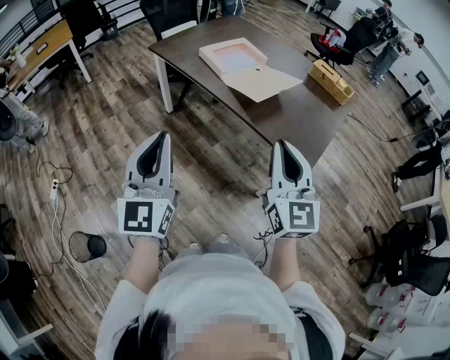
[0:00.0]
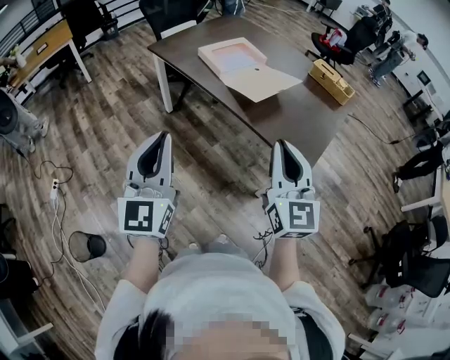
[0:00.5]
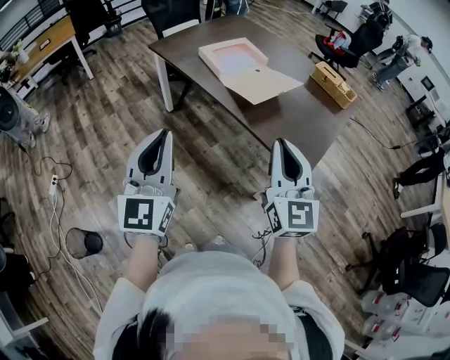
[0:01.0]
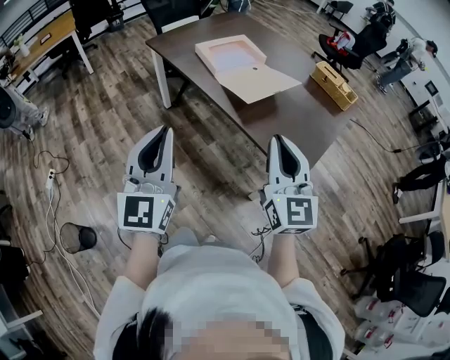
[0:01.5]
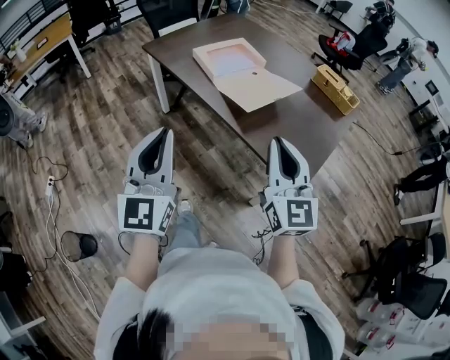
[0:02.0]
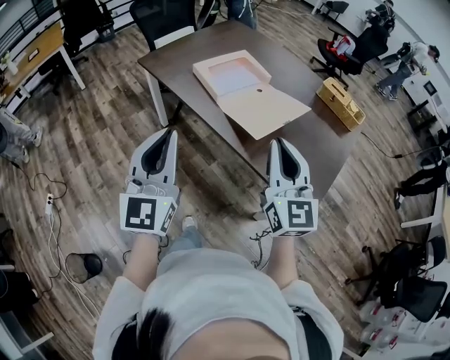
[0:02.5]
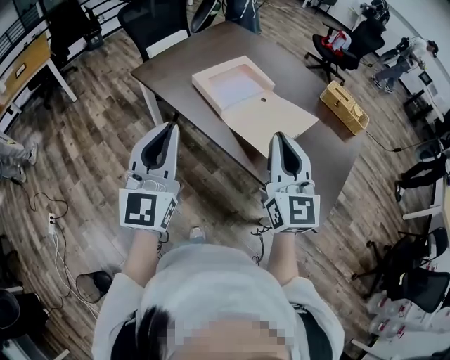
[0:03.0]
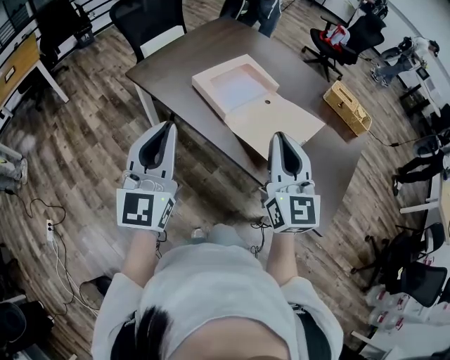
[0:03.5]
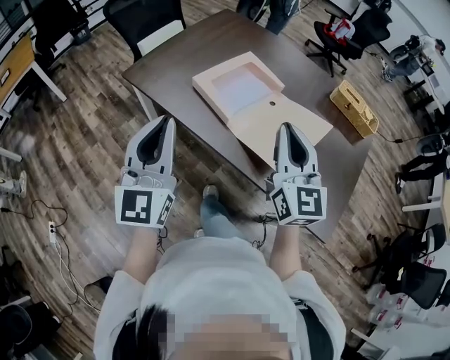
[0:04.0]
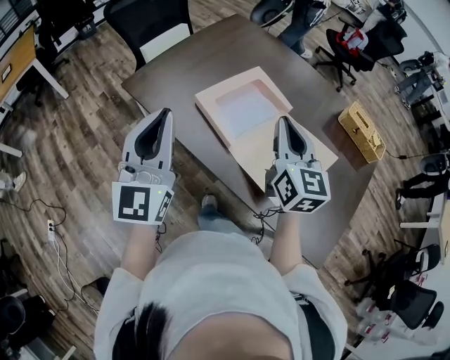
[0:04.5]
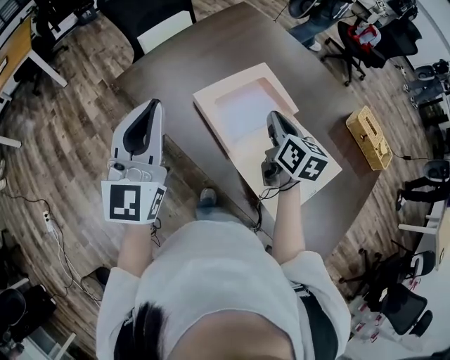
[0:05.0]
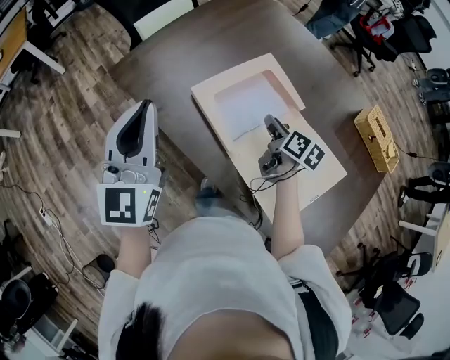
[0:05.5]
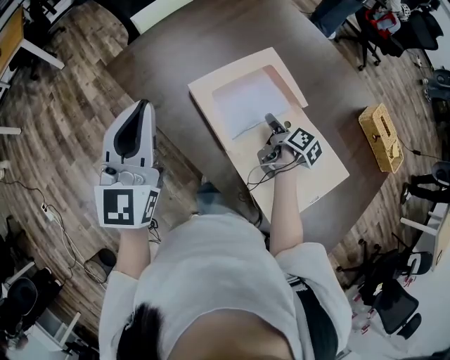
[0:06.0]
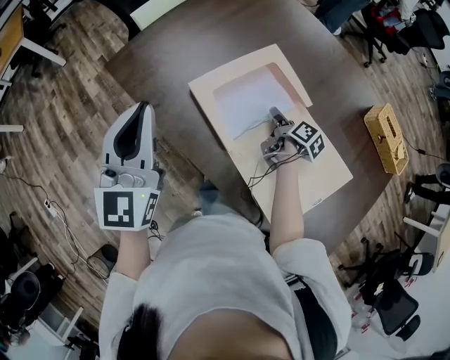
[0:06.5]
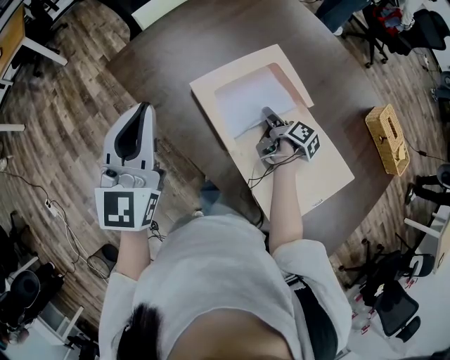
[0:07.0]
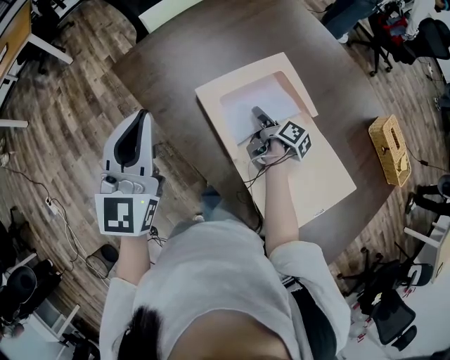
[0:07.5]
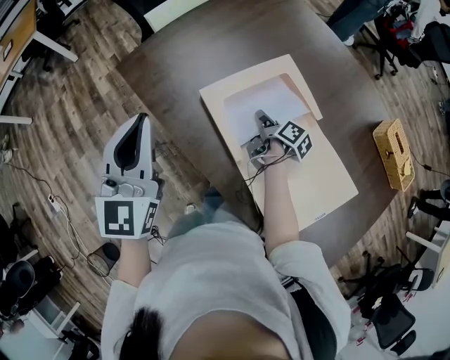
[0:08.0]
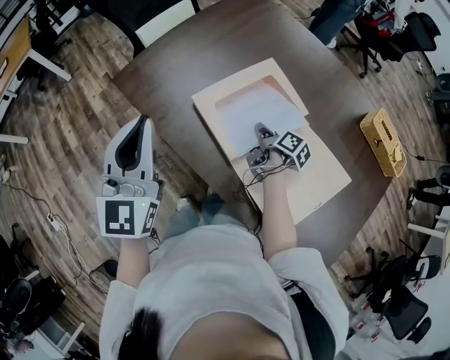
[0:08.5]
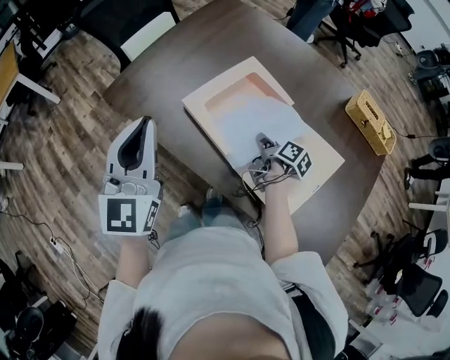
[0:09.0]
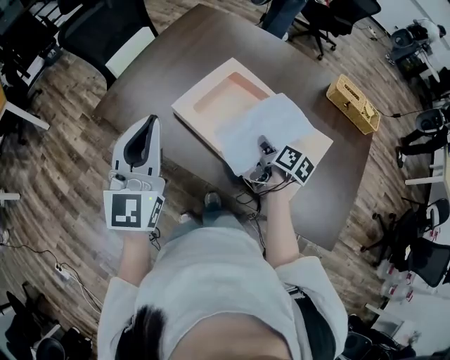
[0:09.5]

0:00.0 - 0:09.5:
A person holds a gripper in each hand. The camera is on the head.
0:00.0 - 0:02.0: Both grippers move forward and to the right, some 10 cm.
0:02.0 - 0:04.0: The grippers both shift forward by some 35 cm.
0:04.0 - 0:05.5: The left gripper heads forward, covering roughly 20 cm. Meanwhile the right gripper moves forward and downward, some 35 cm, and angles its fingers downward, by roughly 40 degrees.
0:05.5 - 0:07.5: The right gripper heads downward and forward, covering roughly 10 cm, and swivels some 30 degrees.
0:07.5 - 0:09.5: The left gripper moves backward, some 5 cm, while the right gripper moves backward and upward, approximately 20 cm, turns by some 20 degrees, and closes up.

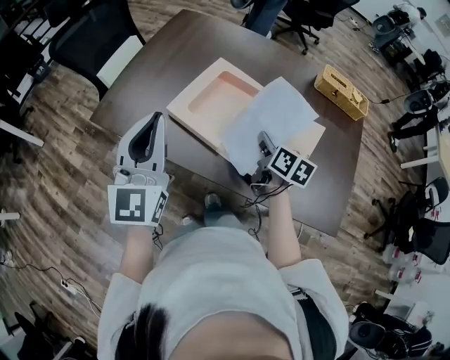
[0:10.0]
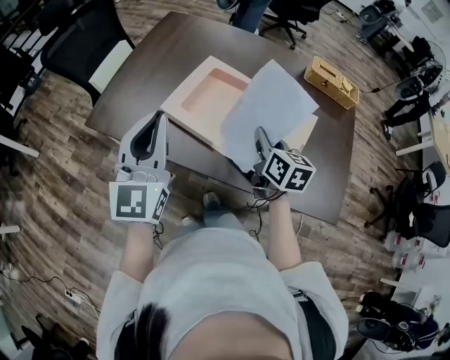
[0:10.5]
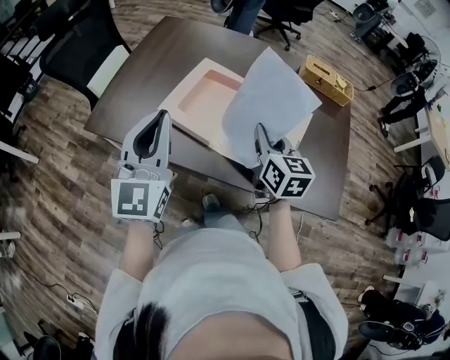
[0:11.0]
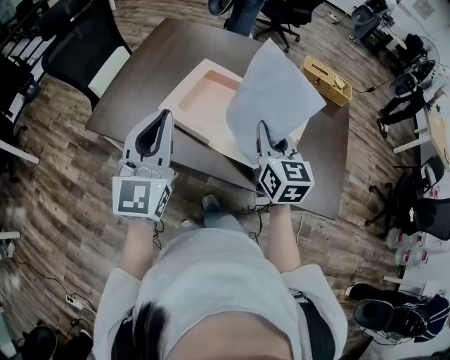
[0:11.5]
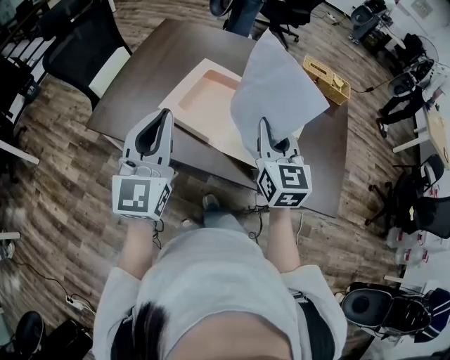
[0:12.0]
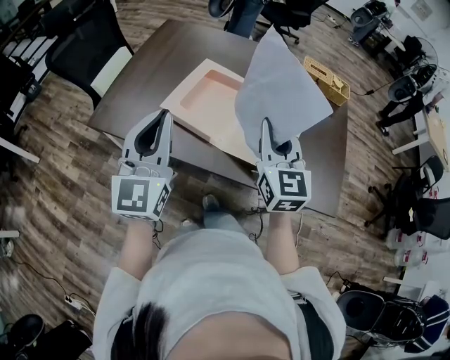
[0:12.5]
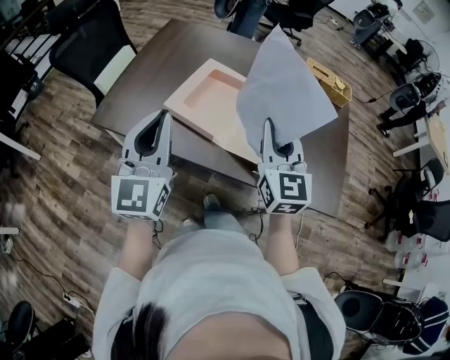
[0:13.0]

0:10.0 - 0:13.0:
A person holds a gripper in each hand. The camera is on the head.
0:10.0 - 0:11.5: The right gripper shifts some 15 cm upward and backward, and turns by some 40 degrees.
0:11.5 - 0:13.0: The right gripper travels upward by approximately 5 cm.

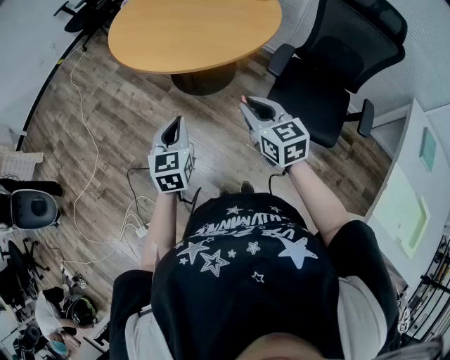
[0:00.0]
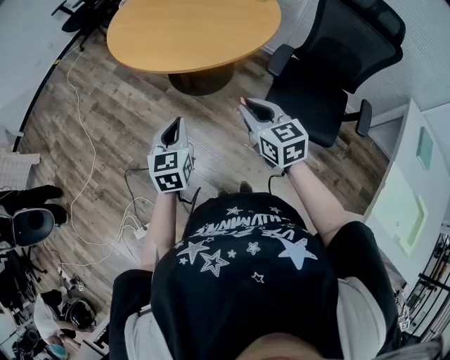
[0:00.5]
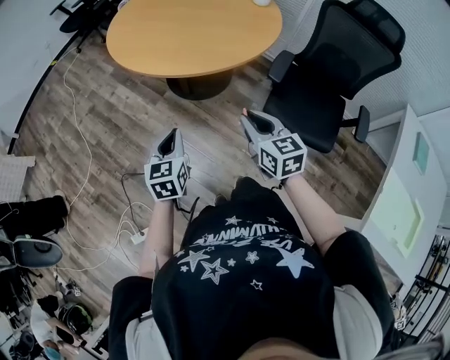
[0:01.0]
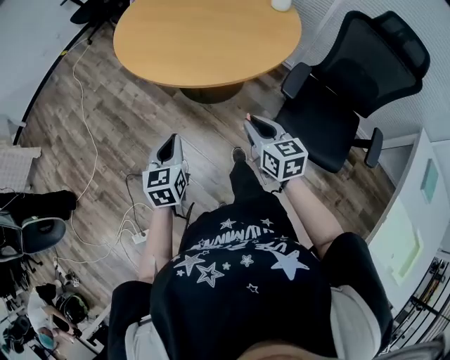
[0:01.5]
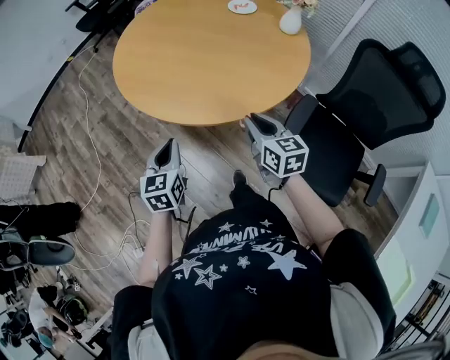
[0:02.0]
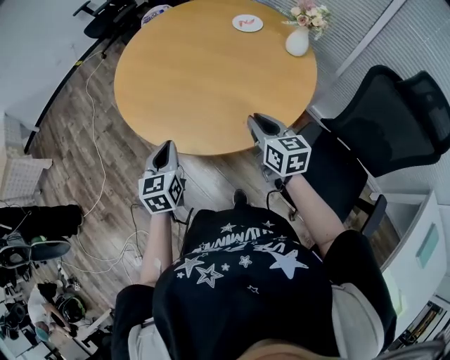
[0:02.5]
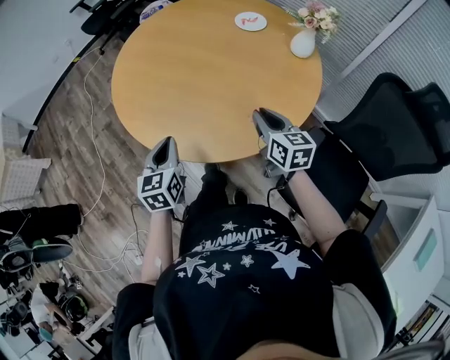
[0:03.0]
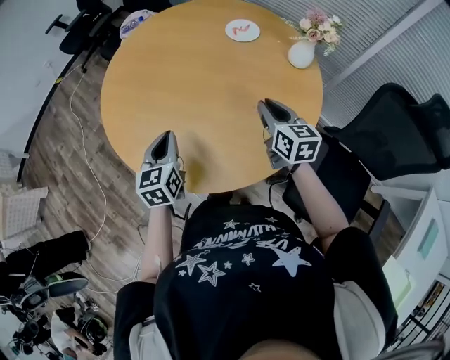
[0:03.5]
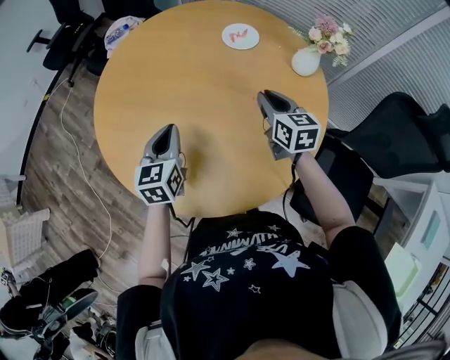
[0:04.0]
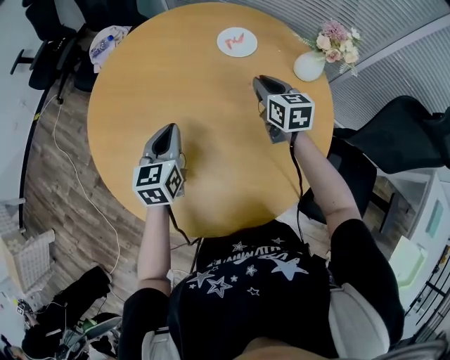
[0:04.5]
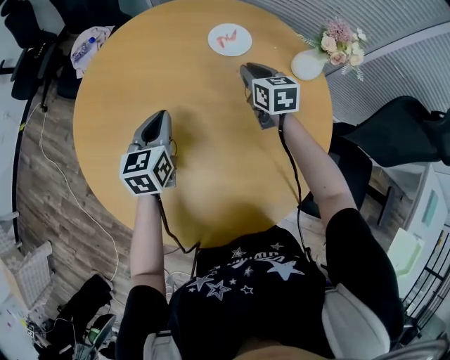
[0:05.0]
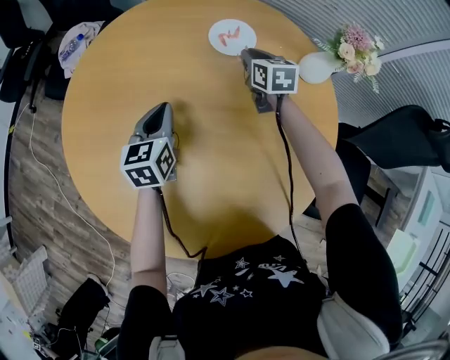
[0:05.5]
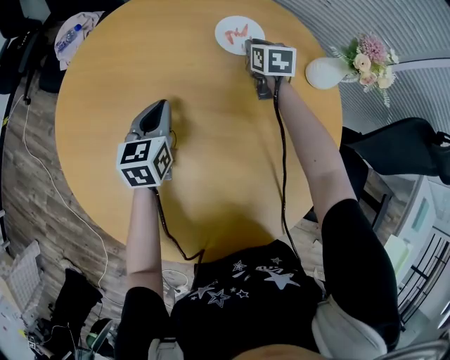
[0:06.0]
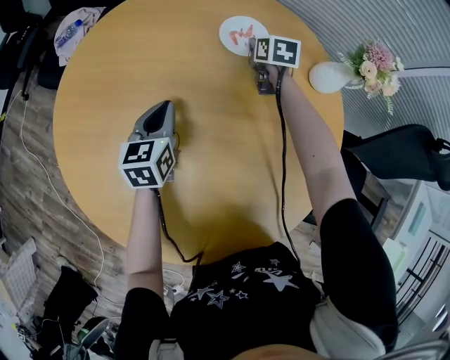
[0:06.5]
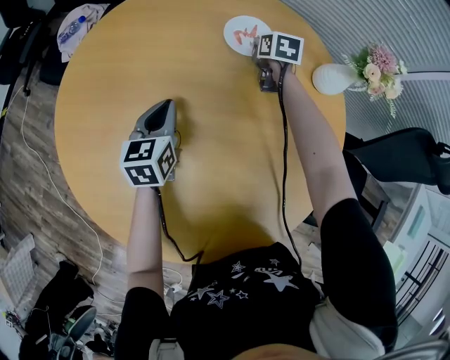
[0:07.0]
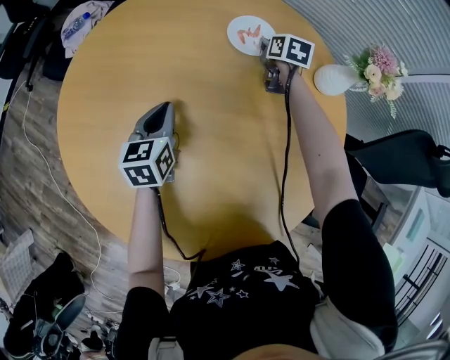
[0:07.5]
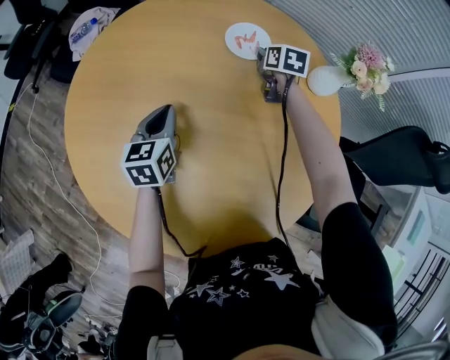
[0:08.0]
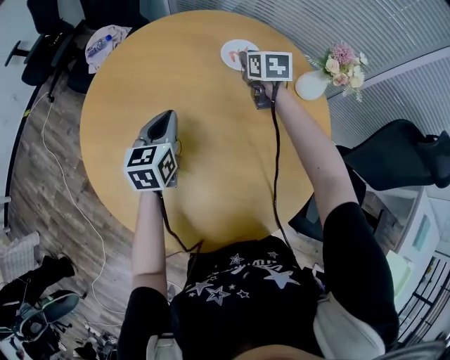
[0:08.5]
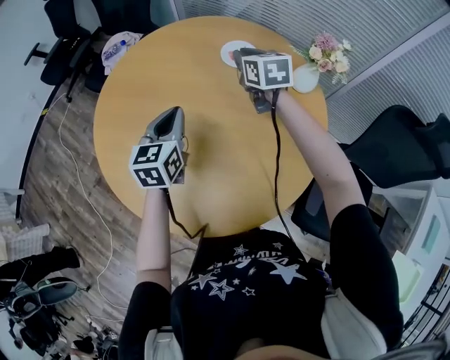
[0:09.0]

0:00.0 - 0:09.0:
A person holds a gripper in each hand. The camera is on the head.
0:00.0 - 0:02.0: Both grippers move forward, approximately 25 cm.
0:02.0 - 0:04.5: The pair of grippers is taken forward, approximately 50 cm.
0:04.5 - 0:07.0: The left gripper moves forward and downward, roughly 15 cm. The right gripper travels forward and downward by about 25 cm, and swivels approximately 30 degrees.
0:07.0 - 0:09.0: The grippers both shift upward and backward by approximately 25 cm. The right gripper changes its angle by roughly 30 degrees.

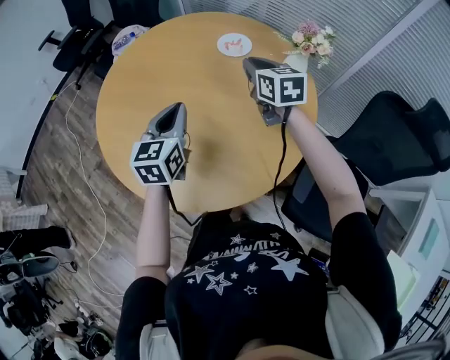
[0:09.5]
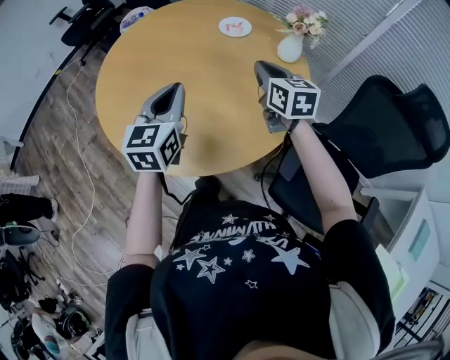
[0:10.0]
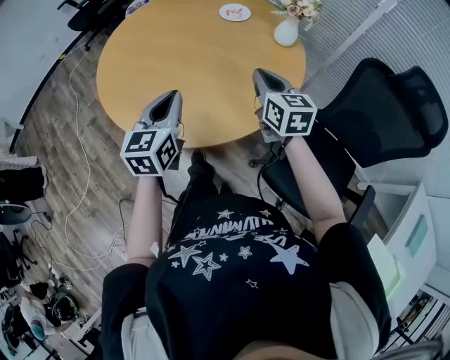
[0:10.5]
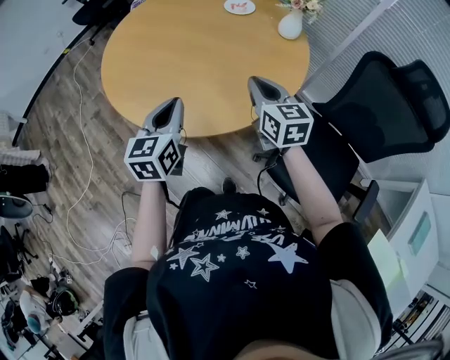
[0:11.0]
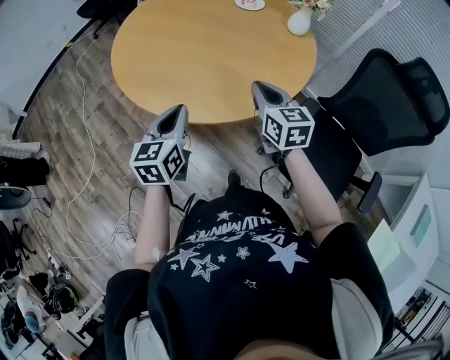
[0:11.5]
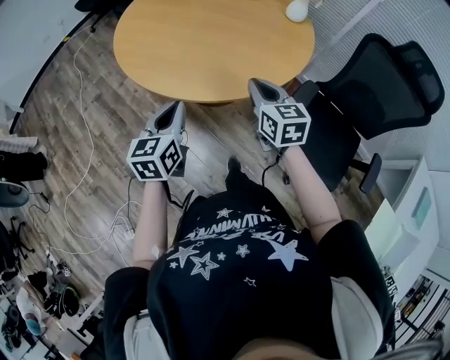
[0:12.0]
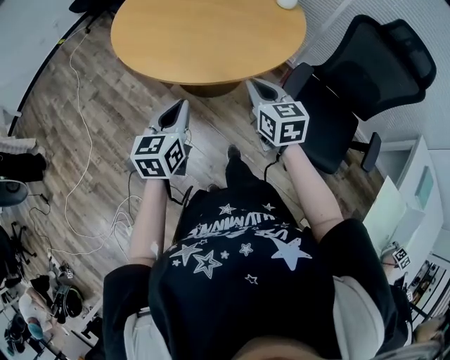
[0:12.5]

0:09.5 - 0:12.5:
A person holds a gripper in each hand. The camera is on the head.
0:09.5 - 0:11.0: Both grippers travel together backward, approximately 25 cm.
0:11.0 - 0:12.5: The left gripper travels backward by approximately 20 cm. Meanwhile the right gripper goes roughly 20 cm backward and to the left.

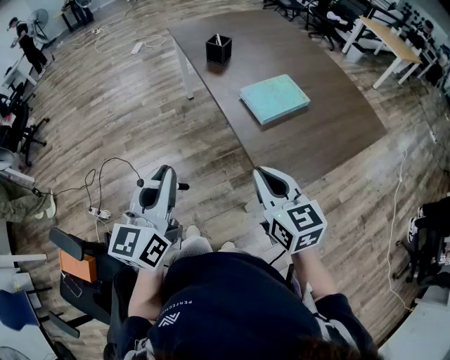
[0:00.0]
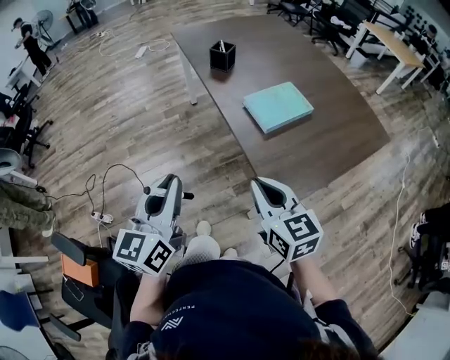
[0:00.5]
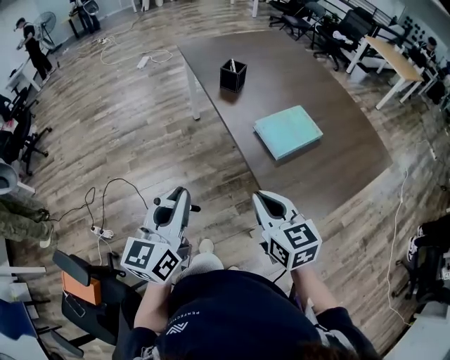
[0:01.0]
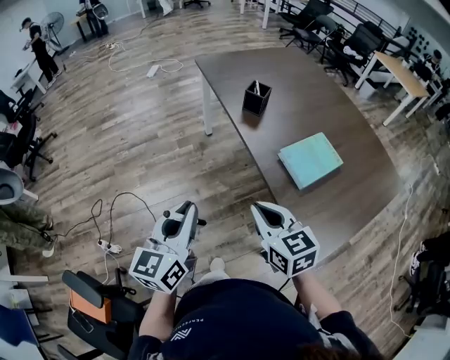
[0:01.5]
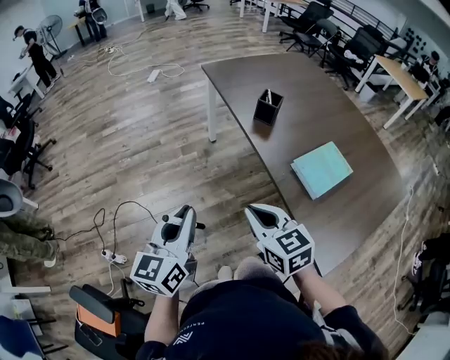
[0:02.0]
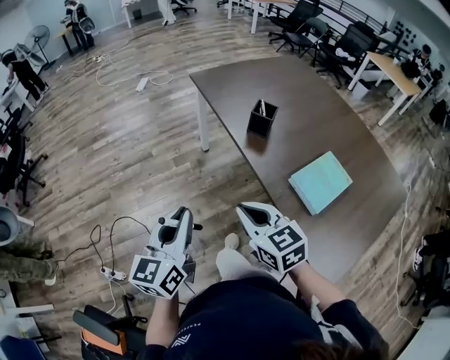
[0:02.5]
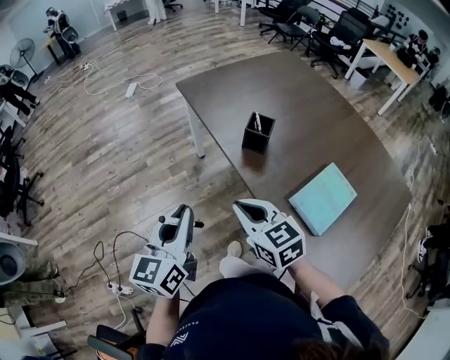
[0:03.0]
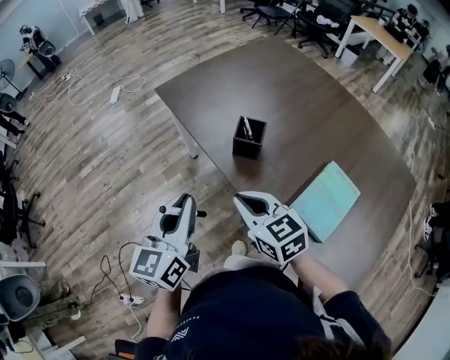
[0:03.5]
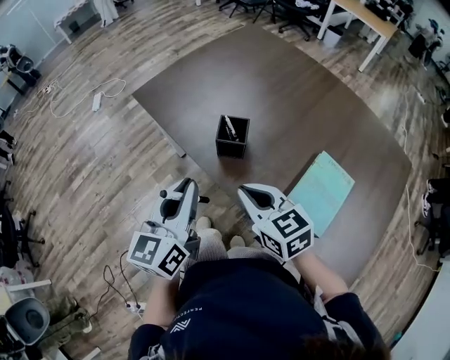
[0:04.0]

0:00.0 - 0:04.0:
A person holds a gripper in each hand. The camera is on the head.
0:00.0 - 0:02.0: The left gripper heads forward and to the left, covering some 20 cm, while the right gripper travels to the left and forward by about 25 cm.
0:02.0 - 0:04.0: The left gripper is displaced forward and to the right by about 35 cm, and turns by some 20 degrees; the right gripper is displaced forward by approximately 30 cm.
